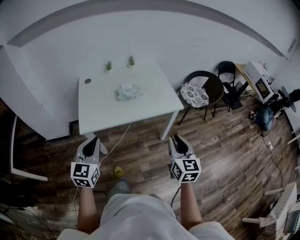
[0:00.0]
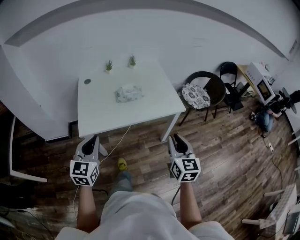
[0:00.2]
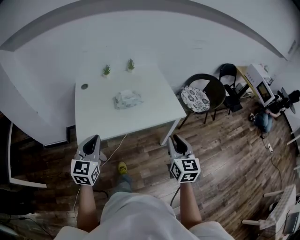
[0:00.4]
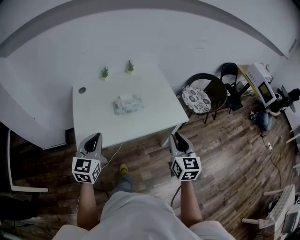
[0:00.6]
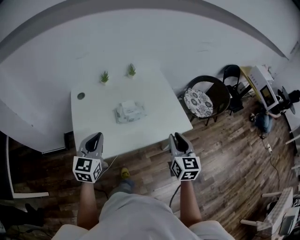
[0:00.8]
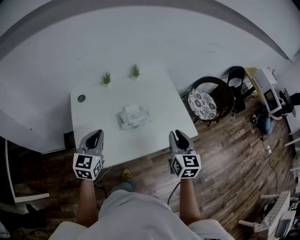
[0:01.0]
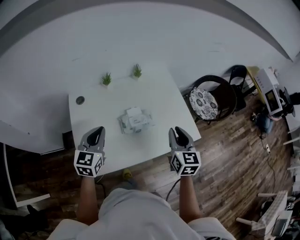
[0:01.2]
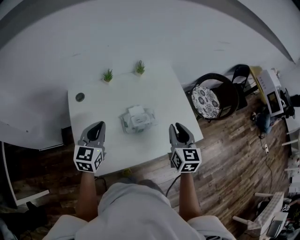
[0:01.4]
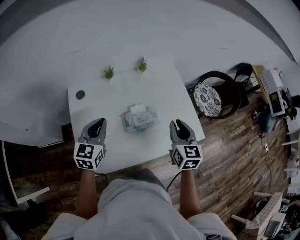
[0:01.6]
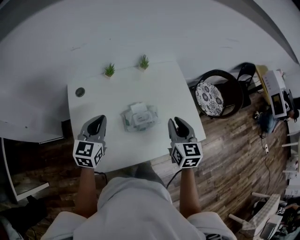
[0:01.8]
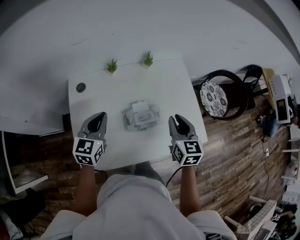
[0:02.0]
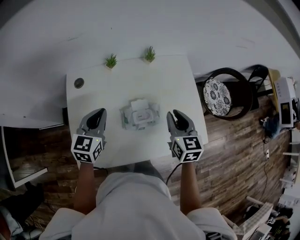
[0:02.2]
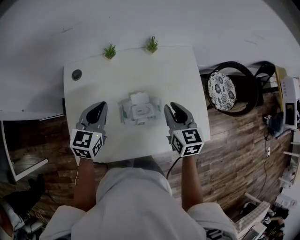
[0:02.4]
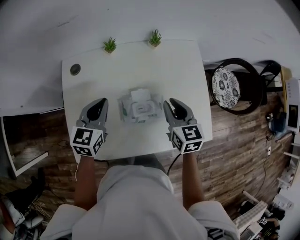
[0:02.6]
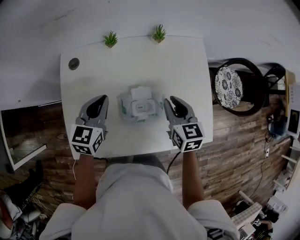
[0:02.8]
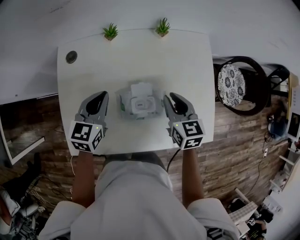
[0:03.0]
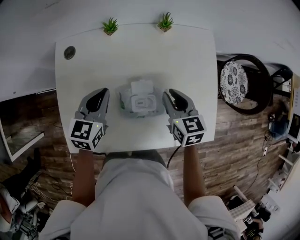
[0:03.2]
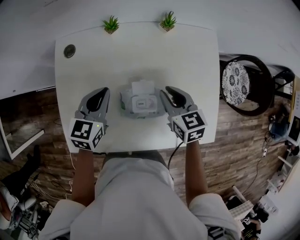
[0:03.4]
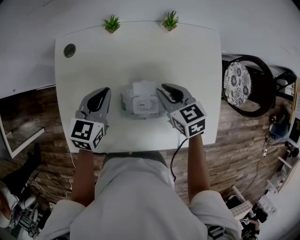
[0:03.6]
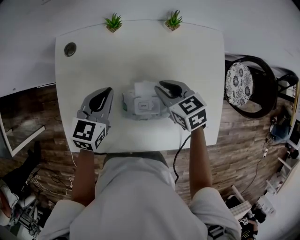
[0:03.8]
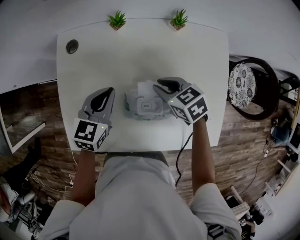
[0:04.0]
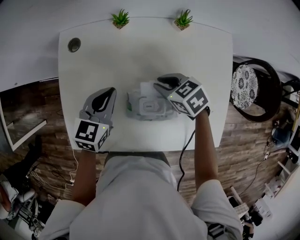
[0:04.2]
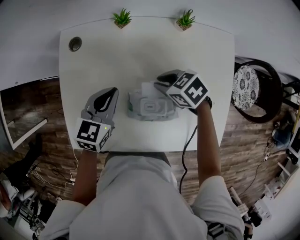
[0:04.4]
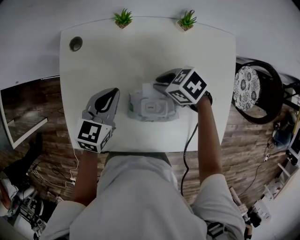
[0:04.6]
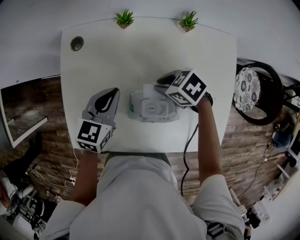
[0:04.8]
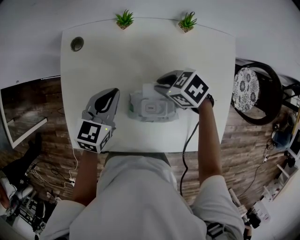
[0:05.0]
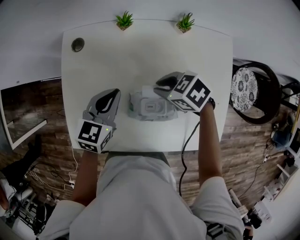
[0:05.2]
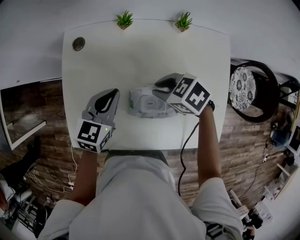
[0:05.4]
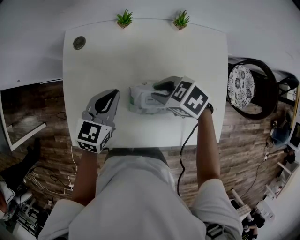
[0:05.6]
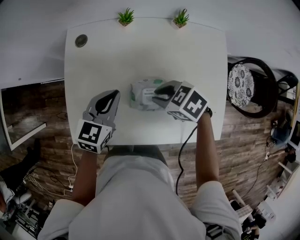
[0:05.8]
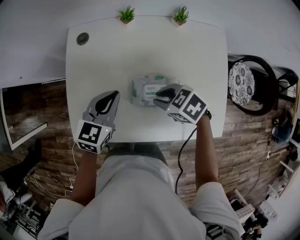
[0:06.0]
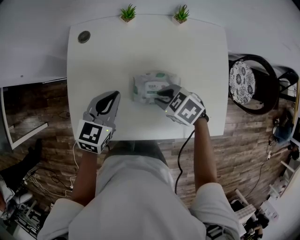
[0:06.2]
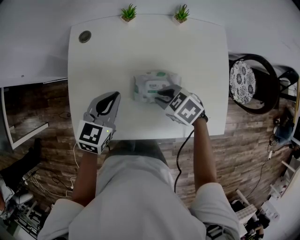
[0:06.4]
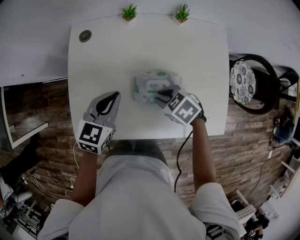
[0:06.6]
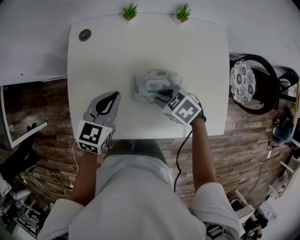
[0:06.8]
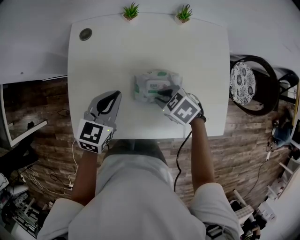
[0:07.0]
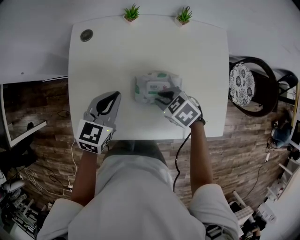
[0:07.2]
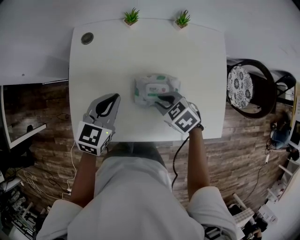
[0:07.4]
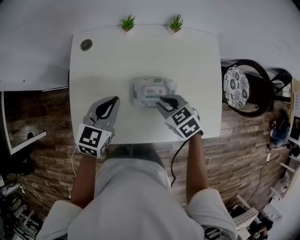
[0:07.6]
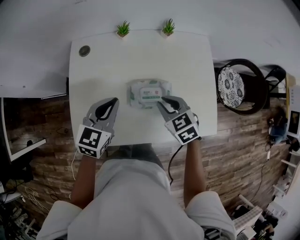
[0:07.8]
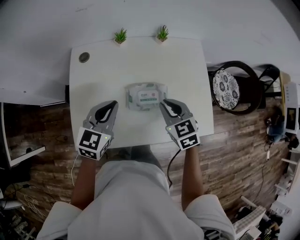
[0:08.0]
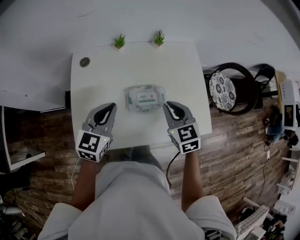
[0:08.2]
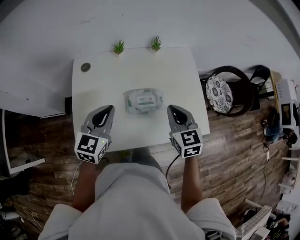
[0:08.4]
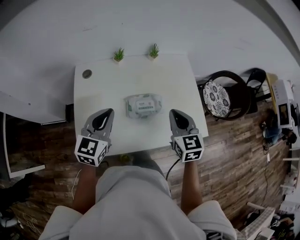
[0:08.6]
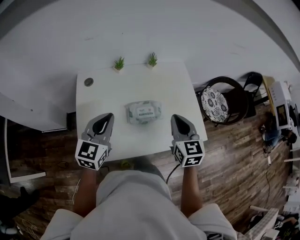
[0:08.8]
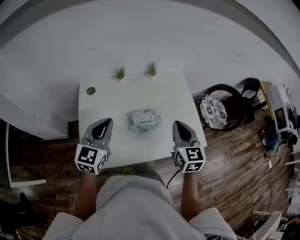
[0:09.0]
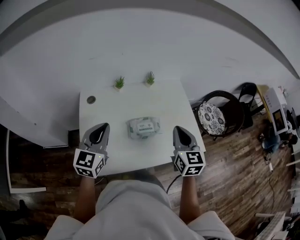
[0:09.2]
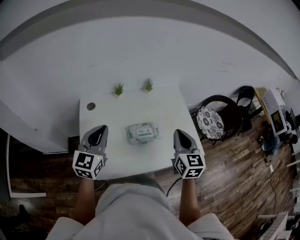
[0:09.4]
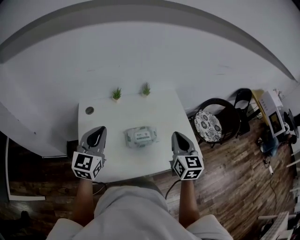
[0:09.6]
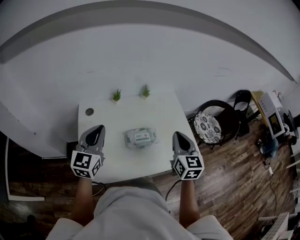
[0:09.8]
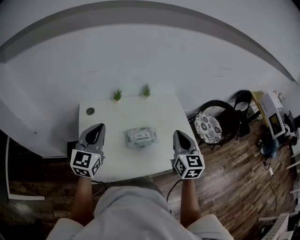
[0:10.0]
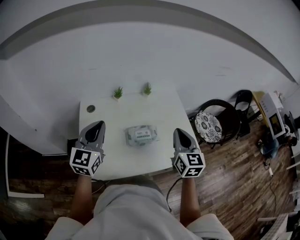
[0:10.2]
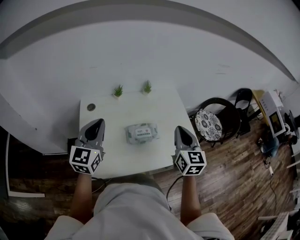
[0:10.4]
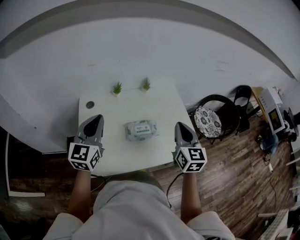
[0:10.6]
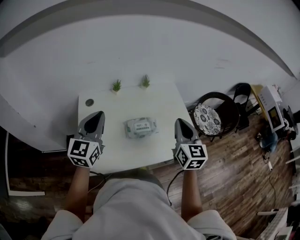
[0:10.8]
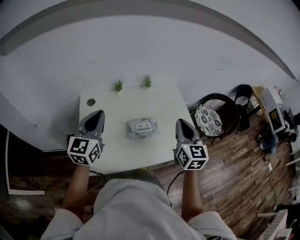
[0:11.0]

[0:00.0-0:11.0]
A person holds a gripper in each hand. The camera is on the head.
0:00.0 to 0:01.6: The pair of grippers is taken forward, approximately 50 cm.
0:01.6 to 0:03.2: Both grippers travel together downward and forward, roughly 20 cm. The right gripper turns by roughly 30 degrees.
0:03.2 to 0:04.8: The right gripper shifts by some 15 cm, and changes its angle by some 60 degrees.
0:04.8 to 0:06.2: The right gripper shifts by approximately 15 cm; the left gripper moves about 10 cm.
0:06.2 to 0:07.8: The right gripper heads upward, covering roughly 5 cm, and rotates some 30 degrees.
0:07.8 to 0:09.4: The right gripper goes roughly 20 cm upward and to the right, and angles its fingers upward, by about 30 degrees; the left gripper heads upward, covering roughly 15 cm, and turns by approximately 20 degrees.
0:09.4 to 0:11.0: The grippers move only a little.

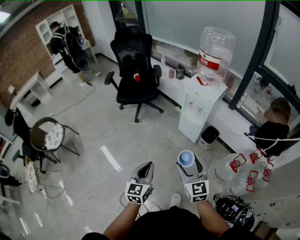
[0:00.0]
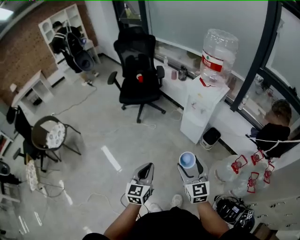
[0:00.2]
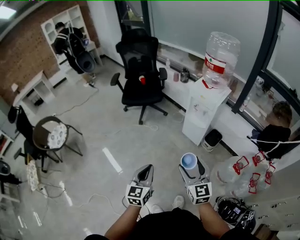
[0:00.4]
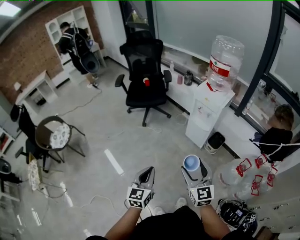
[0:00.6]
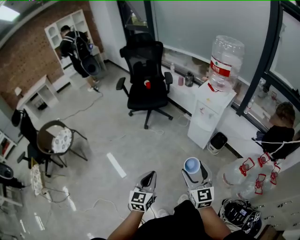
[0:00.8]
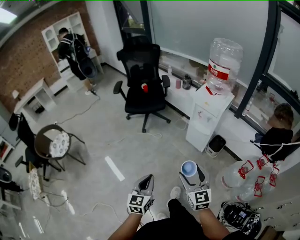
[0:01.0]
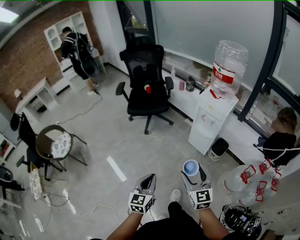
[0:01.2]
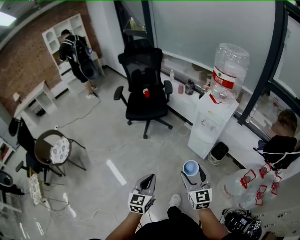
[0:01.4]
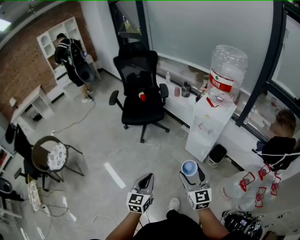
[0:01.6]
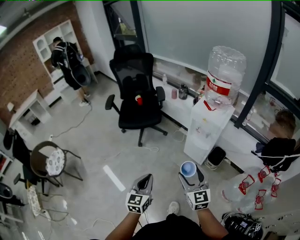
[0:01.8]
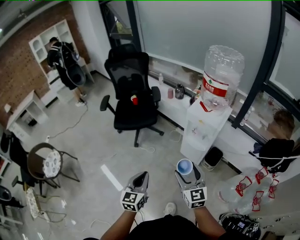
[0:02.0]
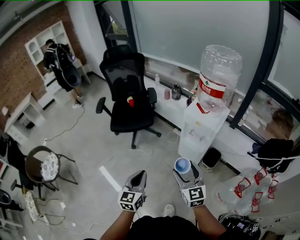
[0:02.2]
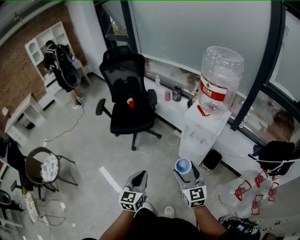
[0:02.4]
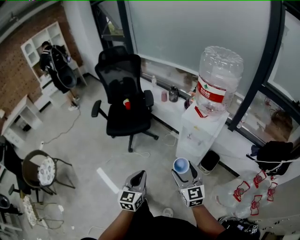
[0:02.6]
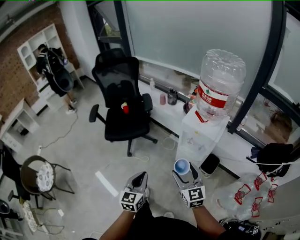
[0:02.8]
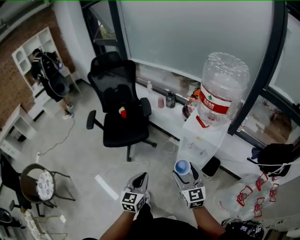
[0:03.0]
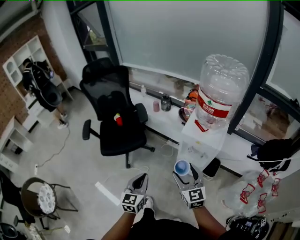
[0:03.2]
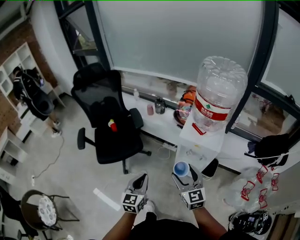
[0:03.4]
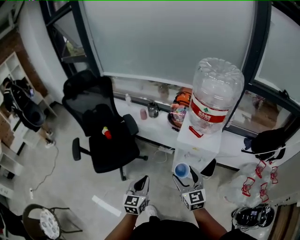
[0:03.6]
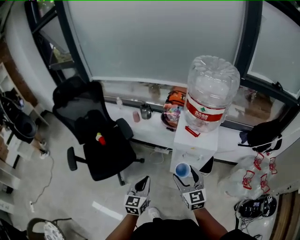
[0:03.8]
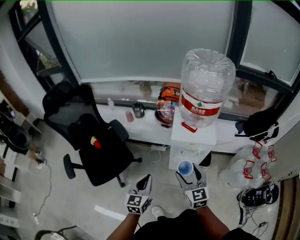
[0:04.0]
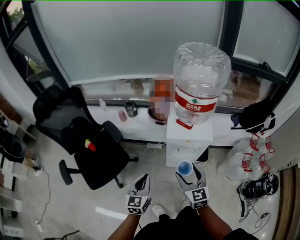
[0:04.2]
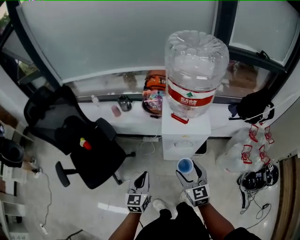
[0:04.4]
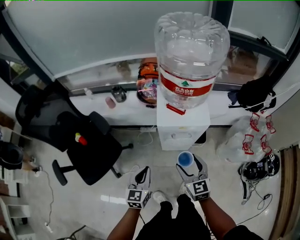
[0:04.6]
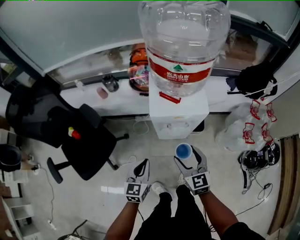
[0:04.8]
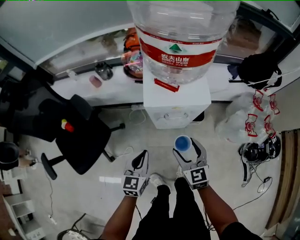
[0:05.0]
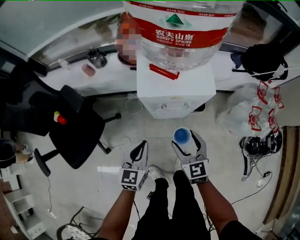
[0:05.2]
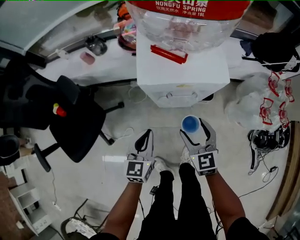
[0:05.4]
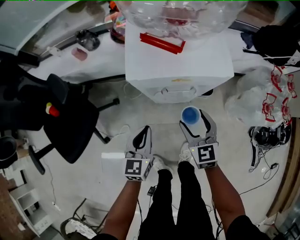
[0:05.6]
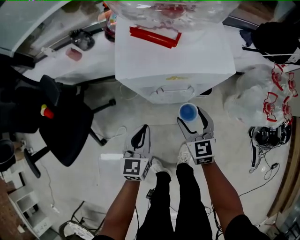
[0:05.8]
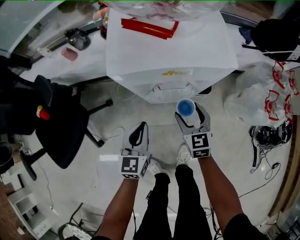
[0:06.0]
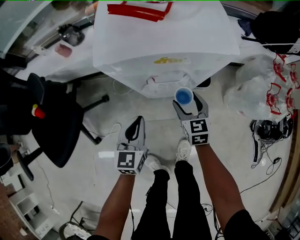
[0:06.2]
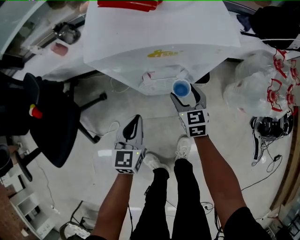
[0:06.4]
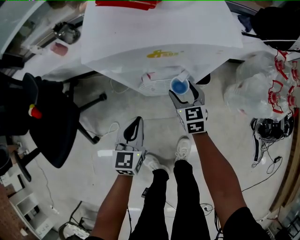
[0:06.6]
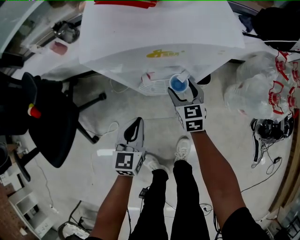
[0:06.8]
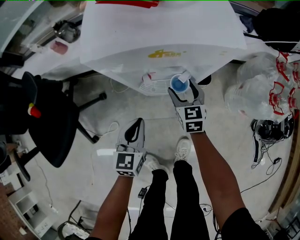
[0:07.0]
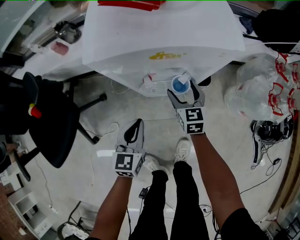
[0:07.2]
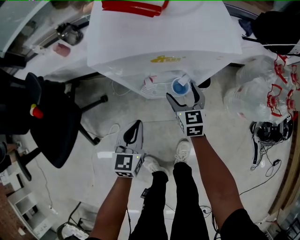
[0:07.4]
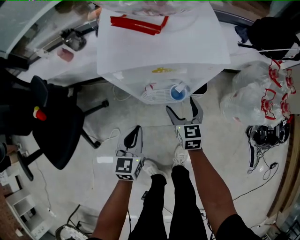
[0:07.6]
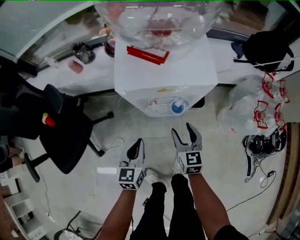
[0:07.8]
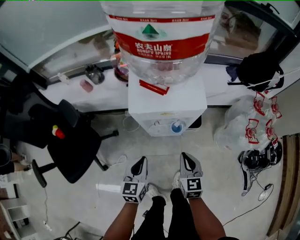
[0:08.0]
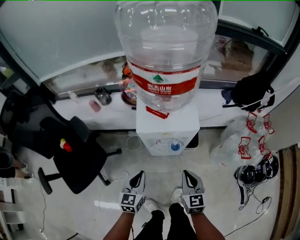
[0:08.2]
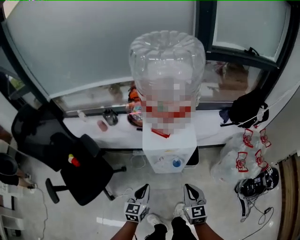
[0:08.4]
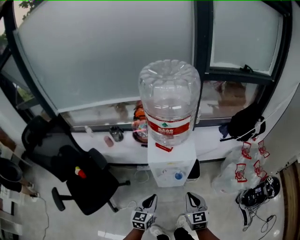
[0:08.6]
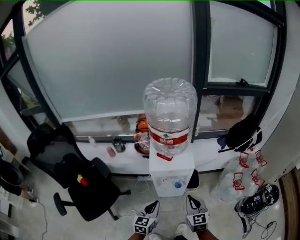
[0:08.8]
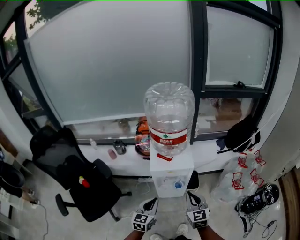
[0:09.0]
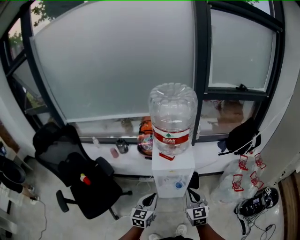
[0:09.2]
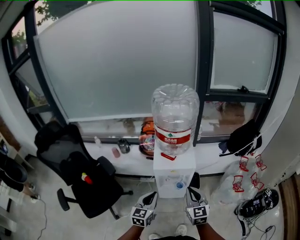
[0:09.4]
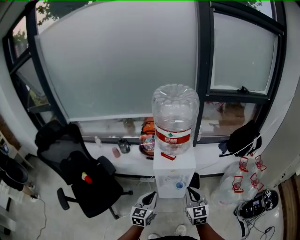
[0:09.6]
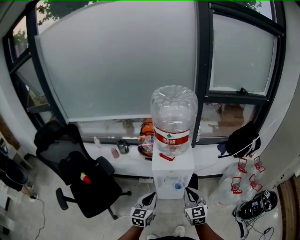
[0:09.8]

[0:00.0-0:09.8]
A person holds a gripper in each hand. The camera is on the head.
0:00.0 to 0:01.4: The left gripper moves to the left and forward, approximately 10 cm. Meanwhile the right gripper travels forward and to the left by approximately 10 cm.
0:01.4 to 0:02.8: Both grippers move forward, approximately 20 cm.
0:02.8 to 0:04.2: The right gripper changes place by roughly 15 cm, and swivels roughly 30 degrees, while the left gripper ends up roughly 25 cm from where it was, and swivels approximately 30 degrees.
0:04.2 to 0:05.6: The left gripper travels downward, to the right and forward by roughly 25 cm, while the right gripper is displaced downward by approximately 25 cm.
0:05.6 to 0:07.0: The left gripper goes some 10 cm downward; the right gripper shifts some 20 cm downward and forward.
0:07.0 to 0:08.4: The left gripper travels upward by about 25 cm; the right gripper is displaced upward and backward by approximately 35 cm, and closes up.
0:08.4 to 0:09.8: The grippers both shift upward by roughly 15 cm.

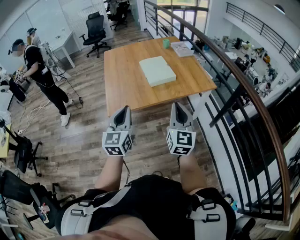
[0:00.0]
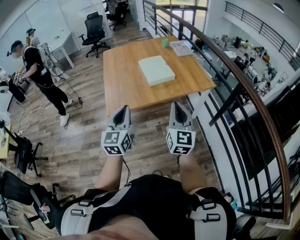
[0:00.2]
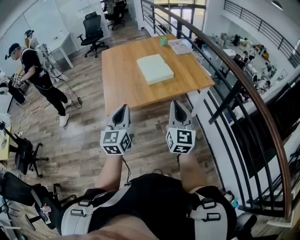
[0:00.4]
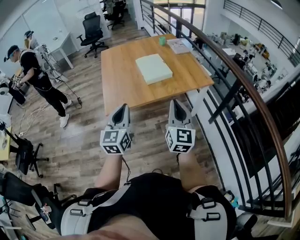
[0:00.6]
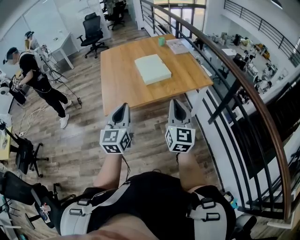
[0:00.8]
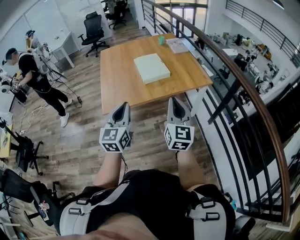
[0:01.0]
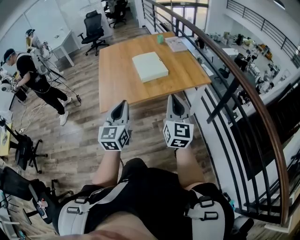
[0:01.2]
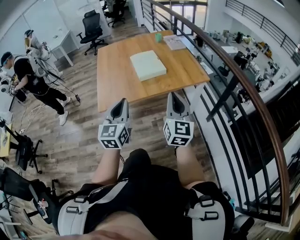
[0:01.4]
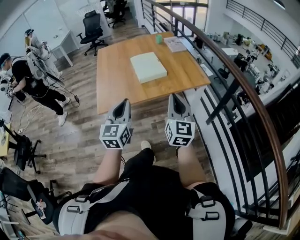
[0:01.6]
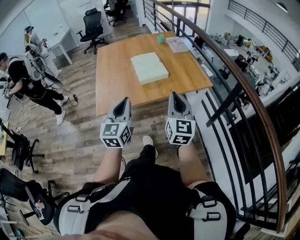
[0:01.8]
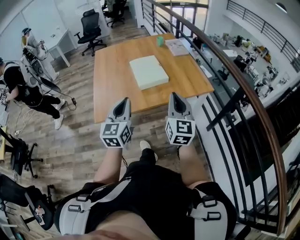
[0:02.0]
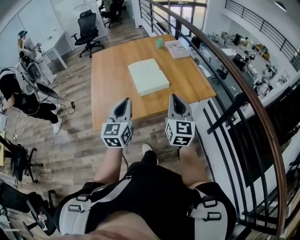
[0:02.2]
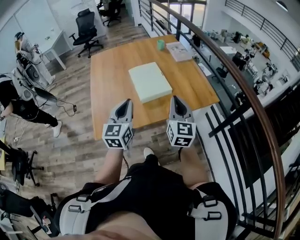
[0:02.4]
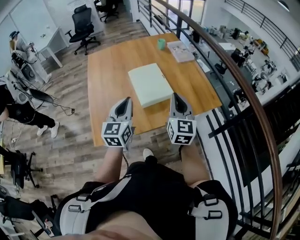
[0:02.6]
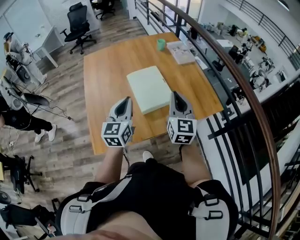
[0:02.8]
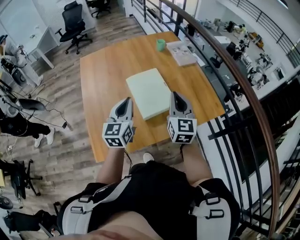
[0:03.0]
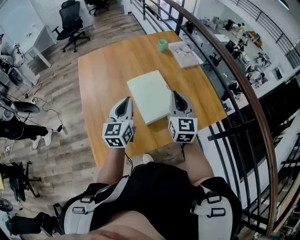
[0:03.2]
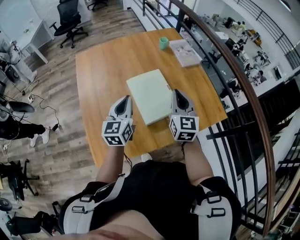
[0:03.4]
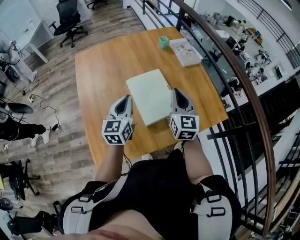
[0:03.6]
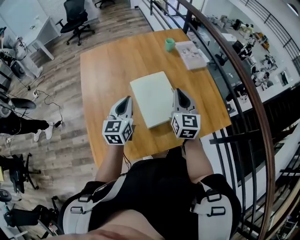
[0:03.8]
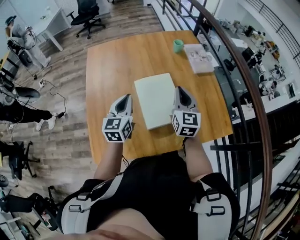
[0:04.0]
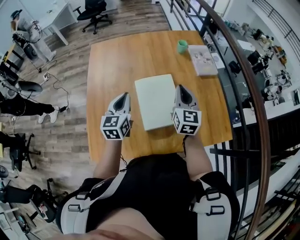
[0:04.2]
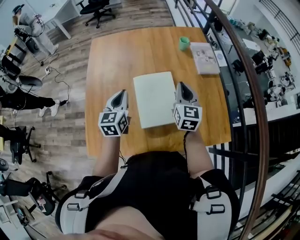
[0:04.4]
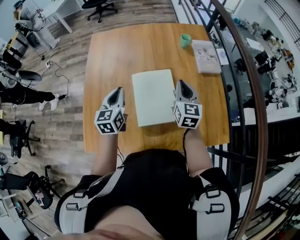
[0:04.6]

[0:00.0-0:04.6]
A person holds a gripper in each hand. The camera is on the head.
0:00.0 to 0:01.6: The two grippers go approximately 10 cm to the right.
0:01.6 to 0:03.0: The grippers both shift forward by roughly 35 cm.
0:03.0 to 0:04.6: The left gripper shifts approximately 15 cm forward and downward, and rotates roughly 20 degrees. Meanwhile the right gripper shifts some 20 cm forward and downward.
